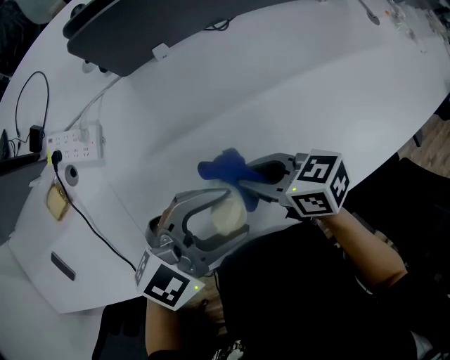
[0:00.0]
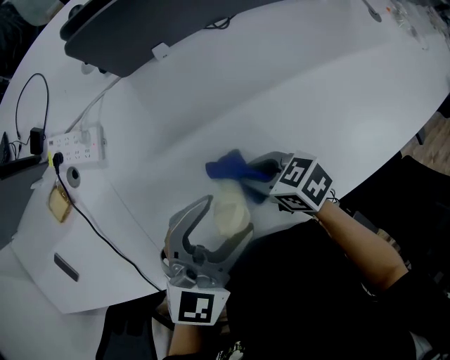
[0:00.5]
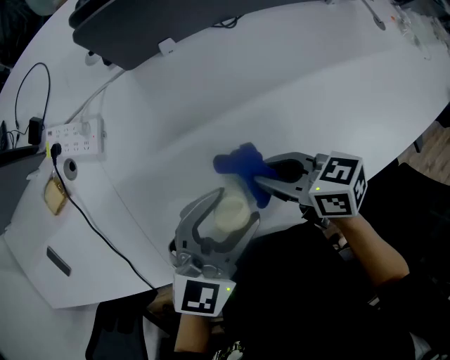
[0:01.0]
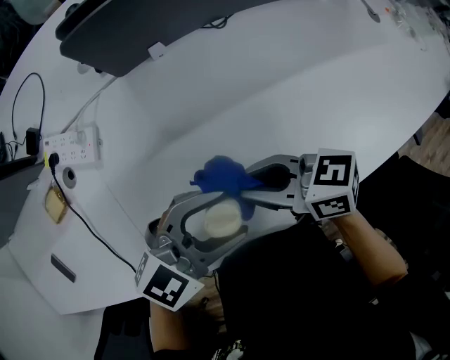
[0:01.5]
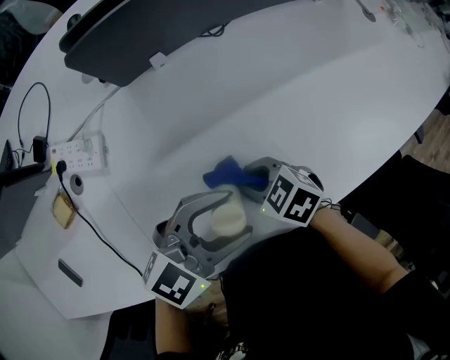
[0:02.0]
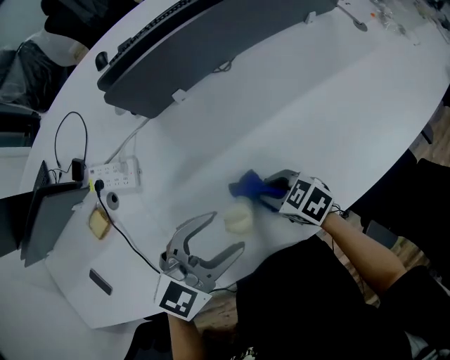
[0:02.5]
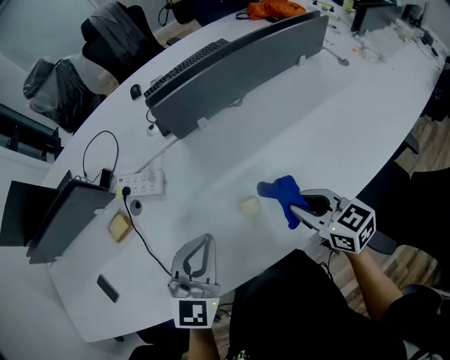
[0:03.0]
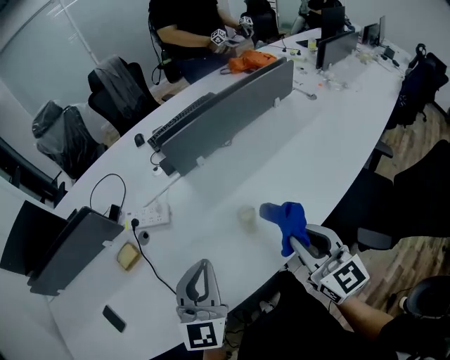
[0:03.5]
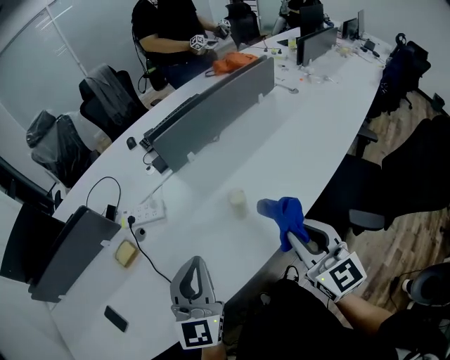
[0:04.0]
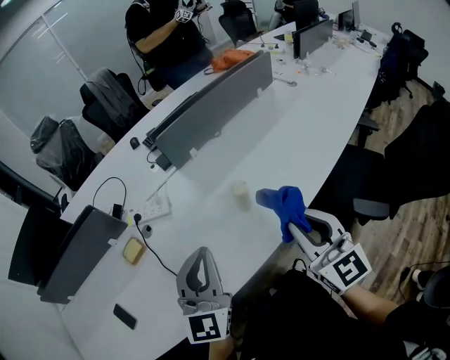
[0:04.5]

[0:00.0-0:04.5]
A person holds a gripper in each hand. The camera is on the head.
0:00.0 to 0:02.0: The right gripper swings up and down, about 10 cm each way, with 2 reversals, and turns by about 30 degrees.
0:02.0 to 0:04.5: The left gripper moves approximately 30 cm, swivels approximately 50 degrees, and closes up. The right gripper moves upward, about 30 cm, and angles its fingers upward, by some 50 degrees.

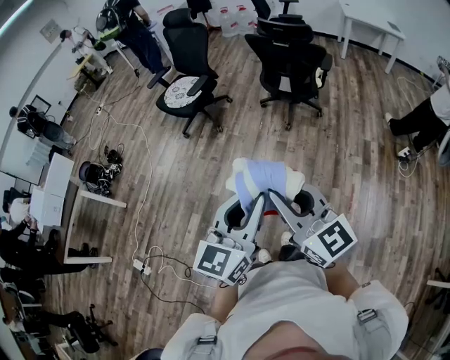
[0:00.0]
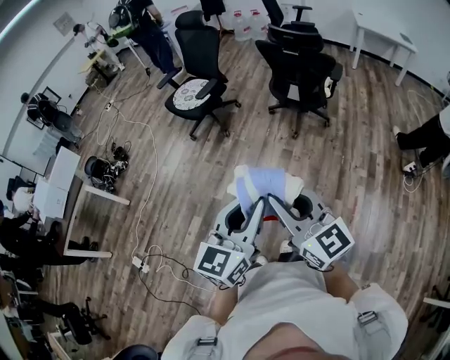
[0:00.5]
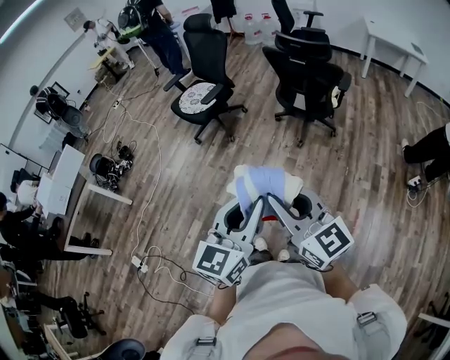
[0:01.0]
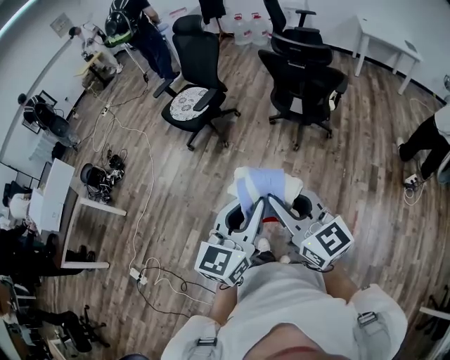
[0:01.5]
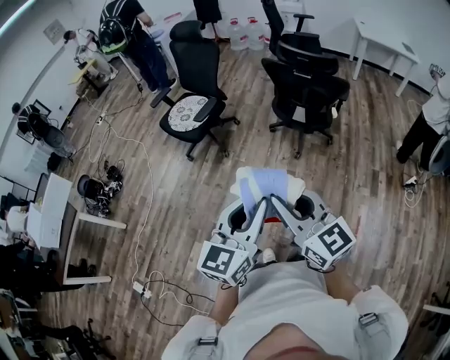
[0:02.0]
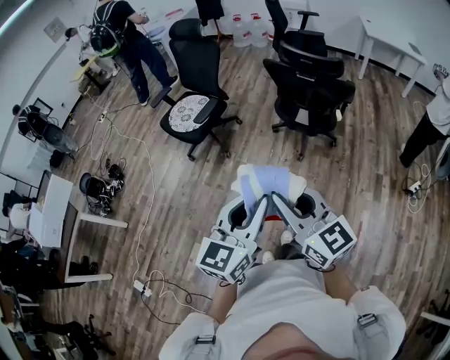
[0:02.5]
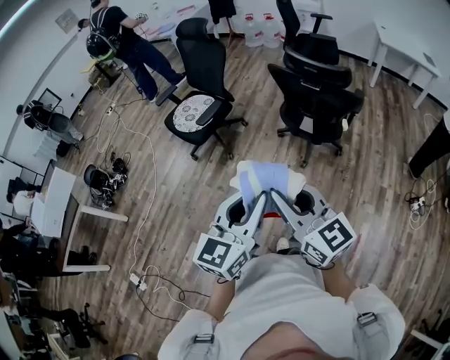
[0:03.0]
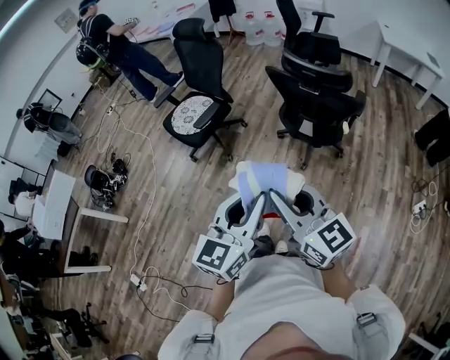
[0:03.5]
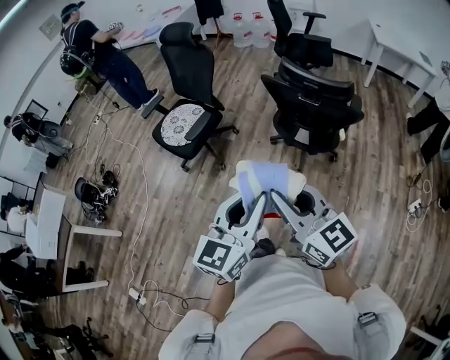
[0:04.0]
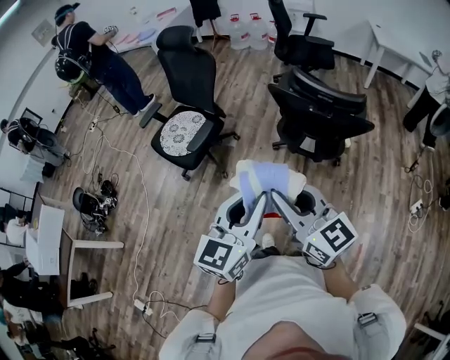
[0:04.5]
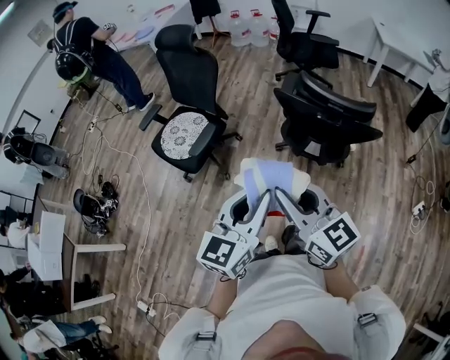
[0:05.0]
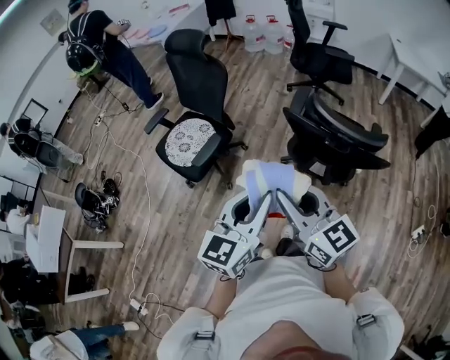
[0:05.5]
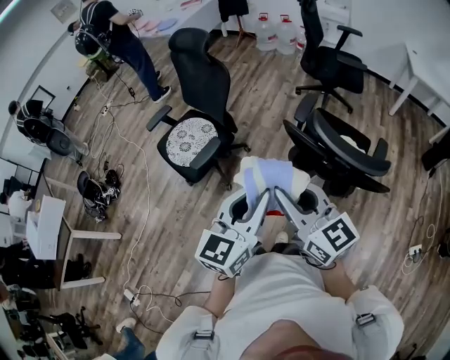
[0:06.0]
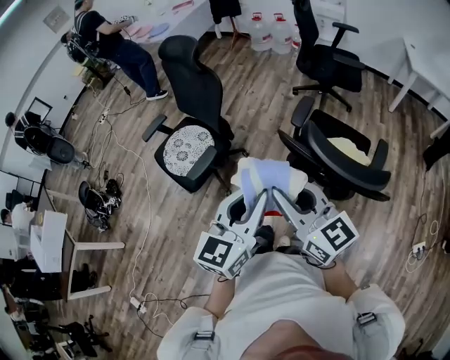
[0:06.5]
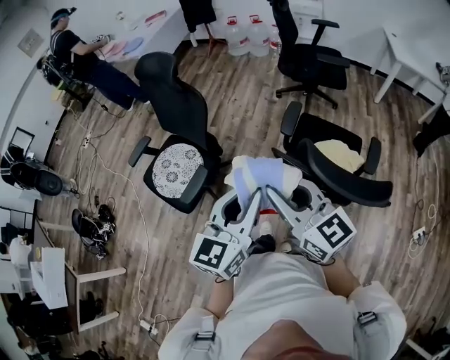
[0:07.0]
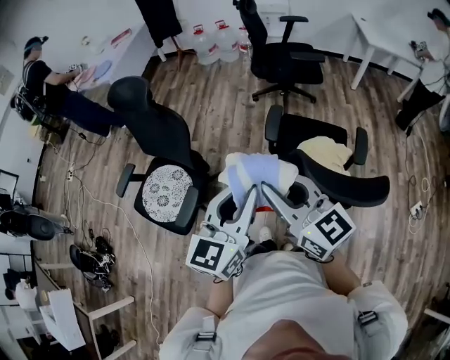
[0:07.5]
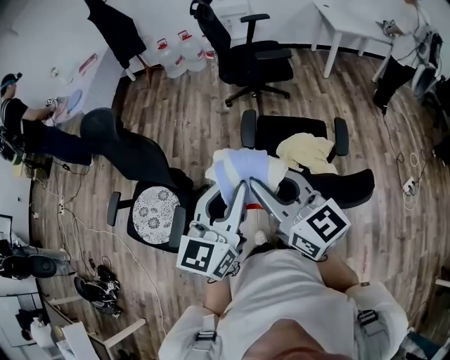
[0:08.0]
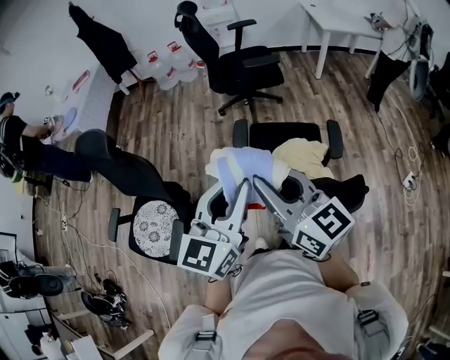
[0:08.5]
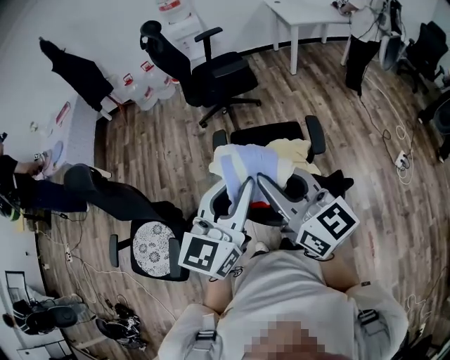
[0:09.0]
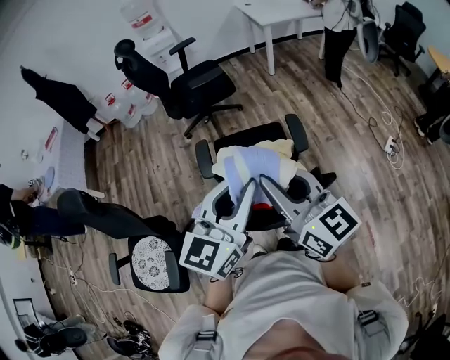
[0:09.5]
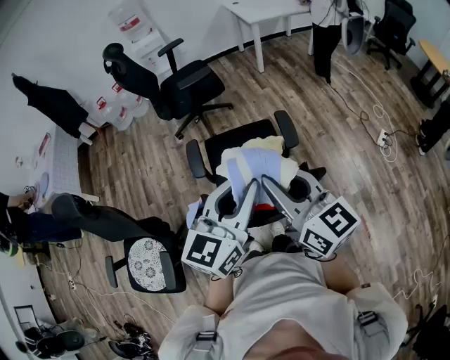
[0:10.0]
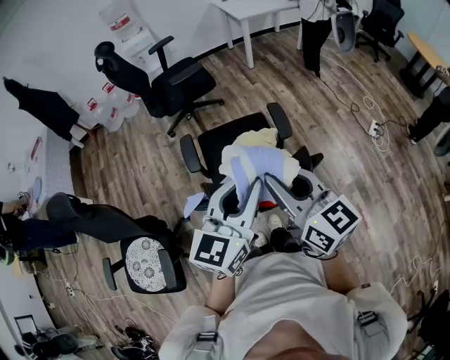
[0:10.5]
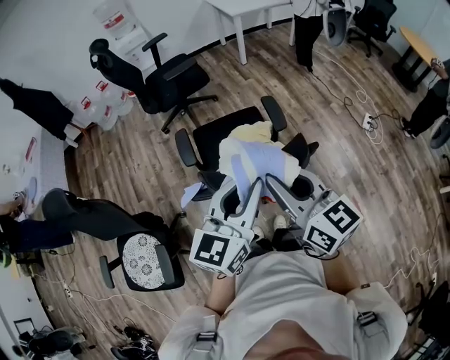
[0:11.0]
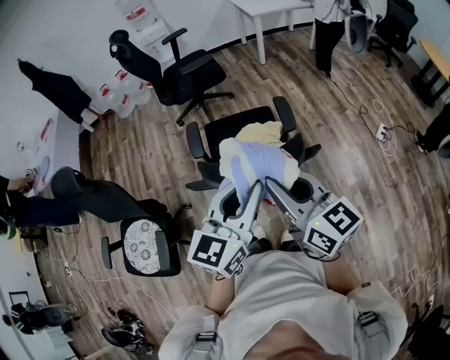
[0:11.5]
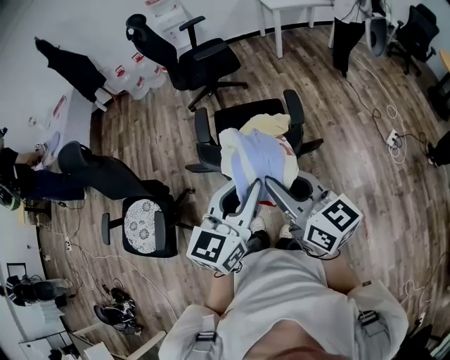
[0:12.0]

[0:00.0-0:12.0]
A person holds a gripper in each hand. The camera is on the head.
0:00.0 to 0:02.0: The grippers both shift forward by approximately 20 cm.
0:02.0 to 0:04.0: The grippers both shift forward and to the right by about 25 cm.
0:04.0 to 0:06.0: The grippers both shift forward by roughly 30 cm.
0:06.0 to 0:08.0: The two grippers go roughly 25 cm forward. The left gripper changes its angle by about 20 degrees. Meanwhile the right gripper swivels about 20 degrees.
0:08.0 to 0:10.0: The right gripper changes place by about 25 cm, and rotates approximately 20 degrees. Meanwhile the left gripper shifts by about 25 cm, and rotates approximately 30 degrees.
0:10.0 to 0:12.0: The grippers both shift backward by roughly 10 cm.

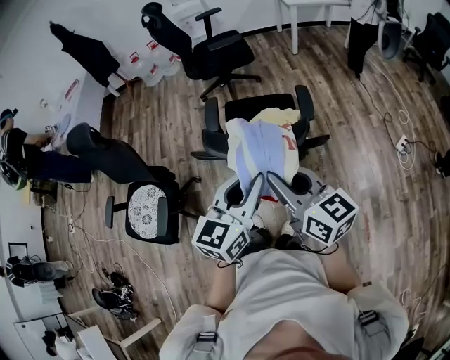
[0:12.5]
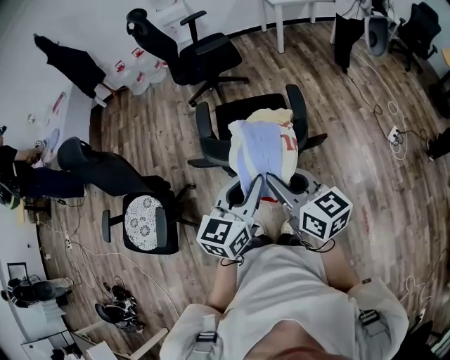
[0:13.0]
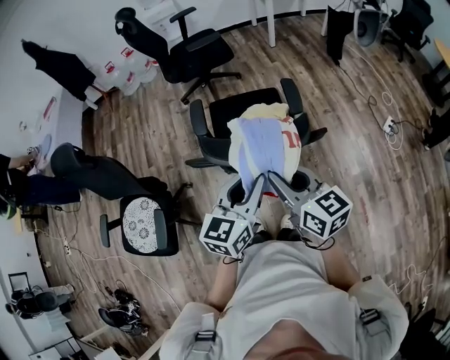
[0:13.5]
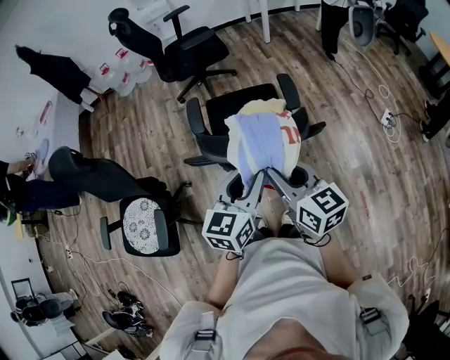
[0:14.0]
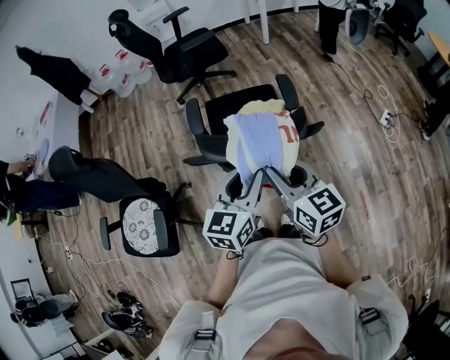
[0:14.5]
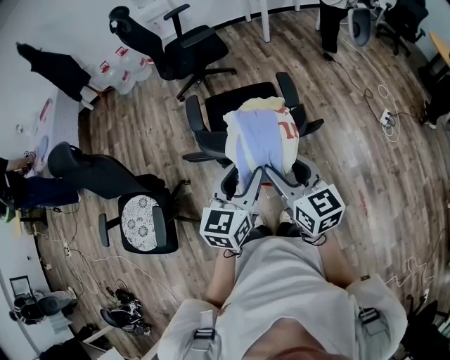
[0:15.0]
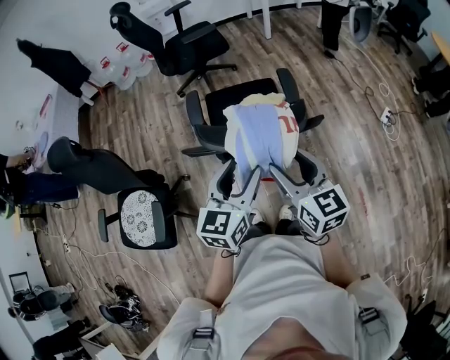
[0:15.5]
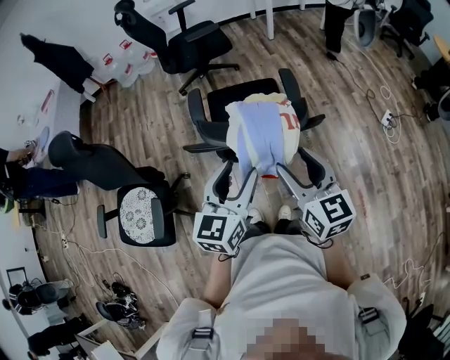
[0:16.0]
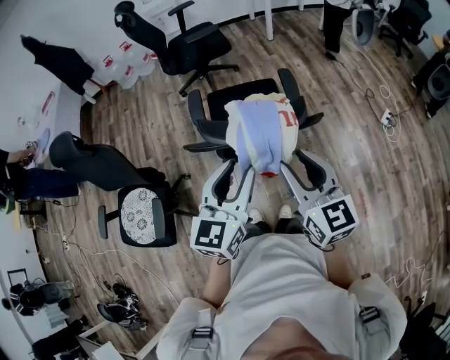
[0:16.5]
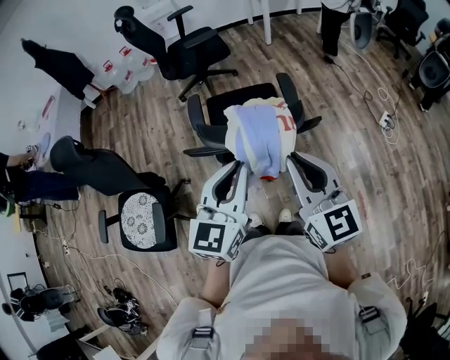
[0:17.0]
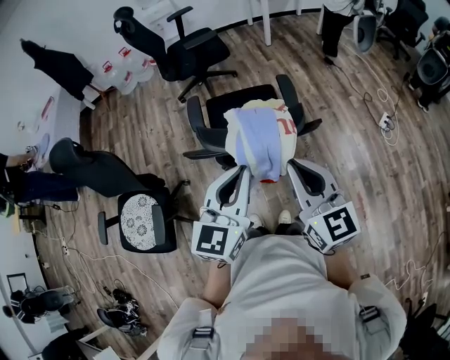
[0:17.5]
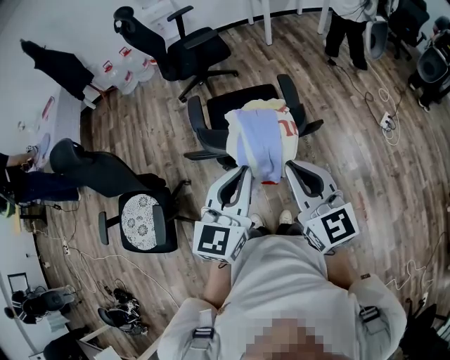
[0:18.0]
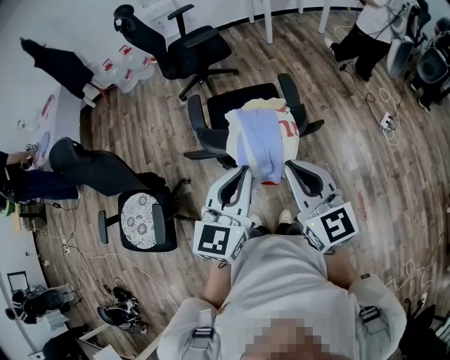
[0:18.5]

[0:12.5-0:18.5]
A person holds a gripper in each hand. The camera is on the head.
0:12.5 to 0:14.5: Both grippers travel together downward, approximately 5 cm.
0:14.5 to 0:16.5: The left gripper goes roughly 5 cm upward. Meanwhile the right gripper moves roughly 5 cm.
0:16.5 to 0:18.5: The right gripper closes; the left gripper closes its fingers.

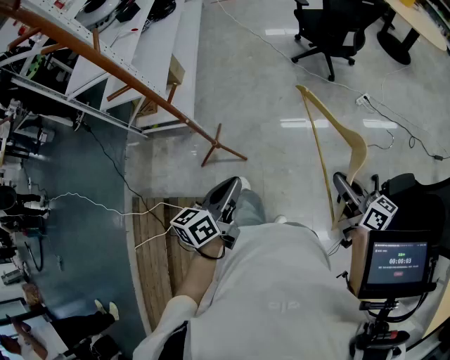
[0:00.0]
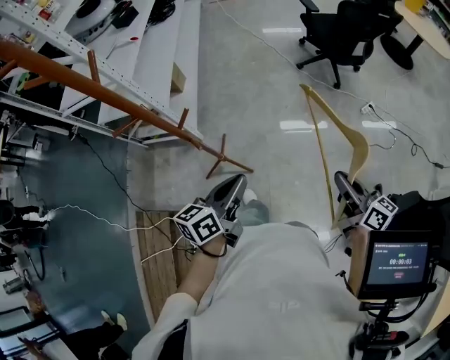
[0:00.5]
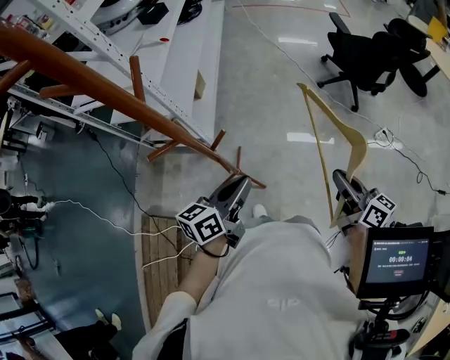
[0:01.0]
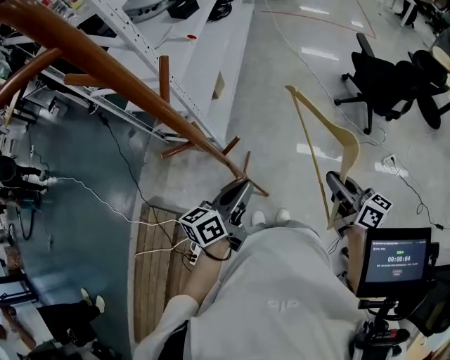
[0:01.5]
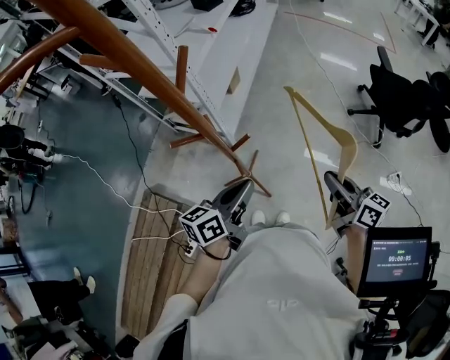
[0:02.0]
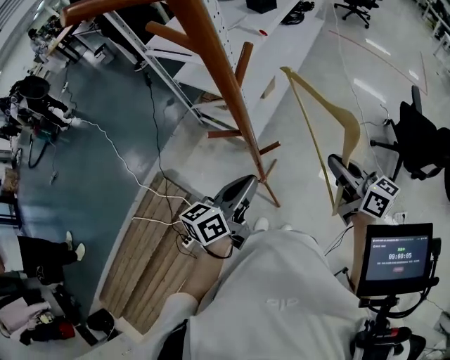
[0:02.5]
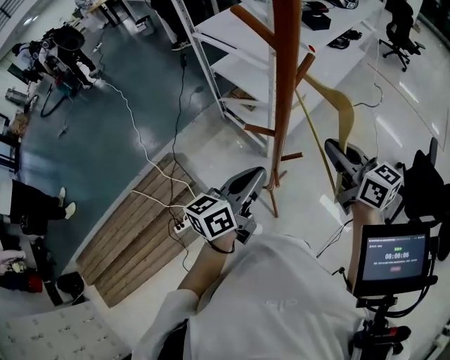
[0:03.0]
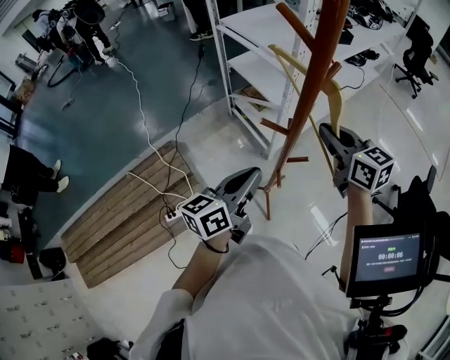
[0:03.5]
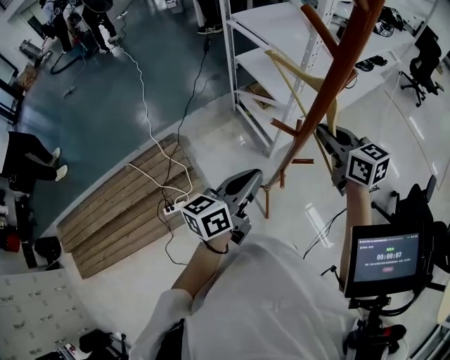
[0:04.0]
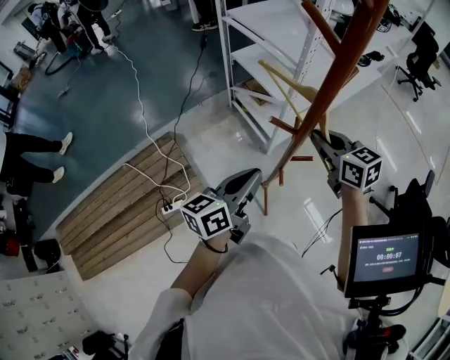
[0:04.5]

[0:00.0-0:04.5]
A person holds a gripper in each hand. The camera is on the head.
0:00.0 to 0:02.0: Both grippers travel together forward and to the left, approximately 35 cm. The right gripper rotates roughly 20 degrees.
0:02.0 to 0:04.5: The left gripper ends up roughly 15 cm from where it was, and rotates some 30 degrees. Meanwhile the right gripper moves about 30 cm, and rotates about 50 degrees.
